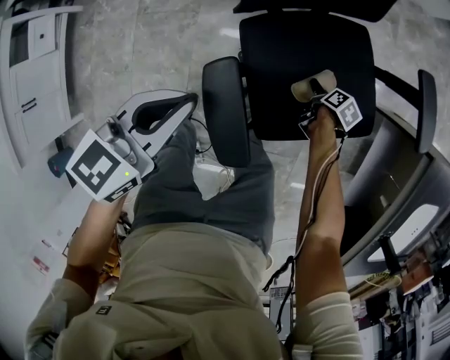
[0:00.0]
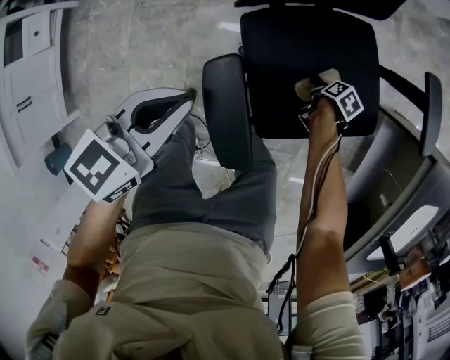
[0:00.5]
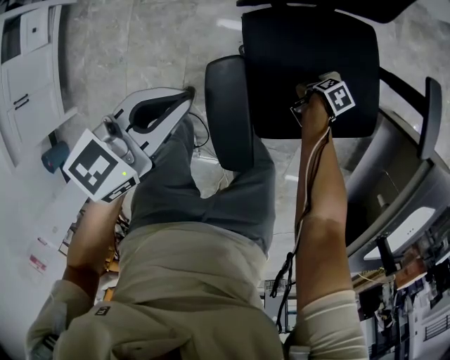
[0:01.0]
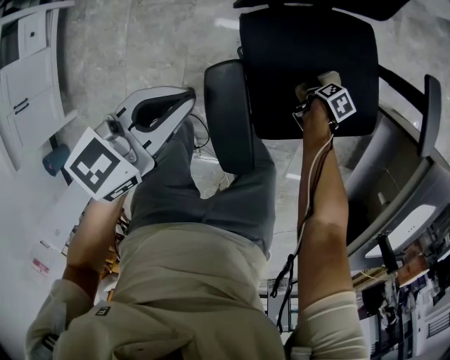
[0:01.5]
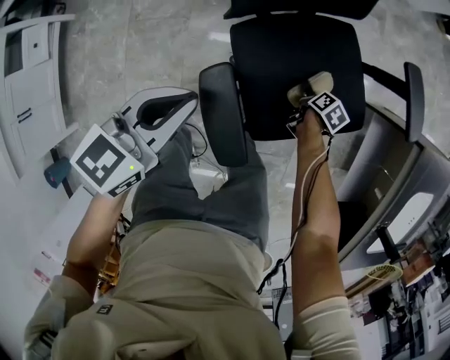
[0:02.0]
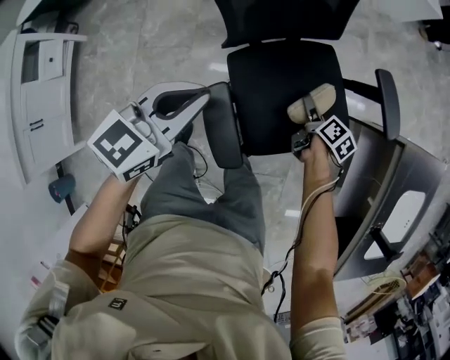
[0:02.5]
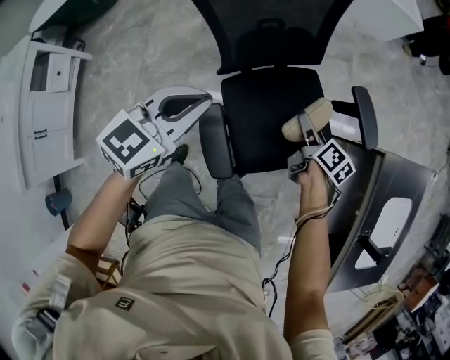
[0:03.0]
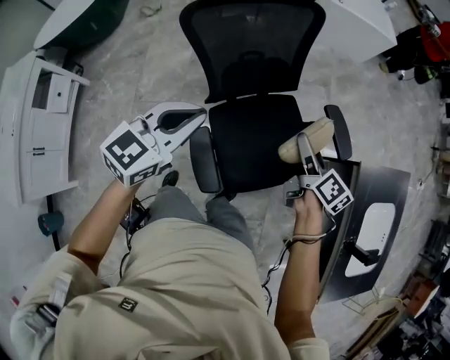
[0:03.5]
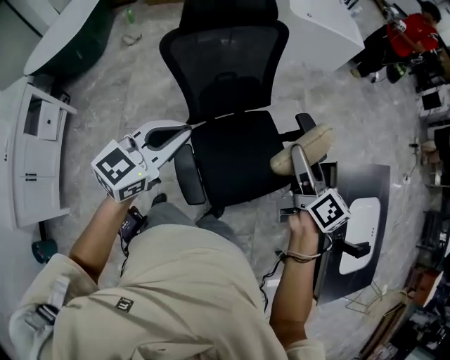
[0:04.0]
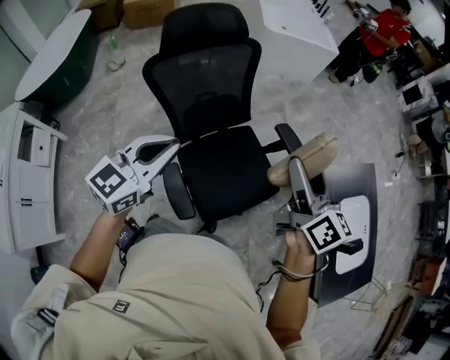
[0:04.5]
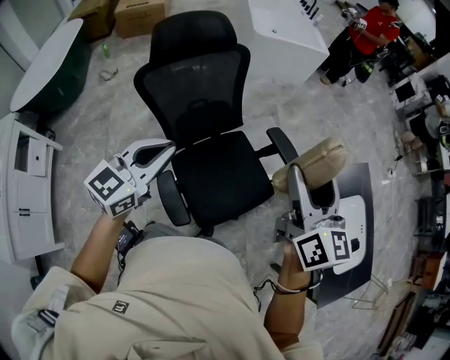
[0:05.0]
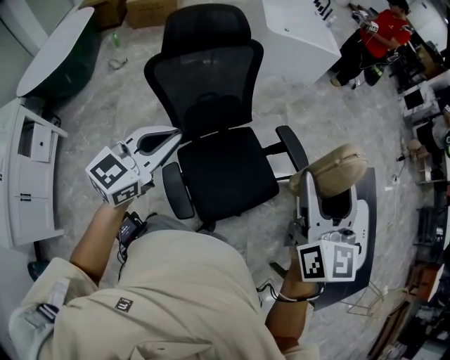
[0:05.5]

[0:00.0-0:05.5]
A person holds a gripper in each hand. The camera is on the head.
0:00.0 to 0:02.0: The grippers stay close to where they were, moving slightly.
0:02.0 to 0:03.5: The left gripper is displaced upward by roughly 20 cm, and swivels about 20 degrees, while the right gripper goes roughly 40 cm upward, and tilts its fingers roughly 40 degrees upward.
0:03.5 to 0:05.5: The right gripper goes roughly 30 cm upward, and twists approximately 50 degrees counterclockwise, seen from behind; the left gripper goes roughly 10 cm upward.

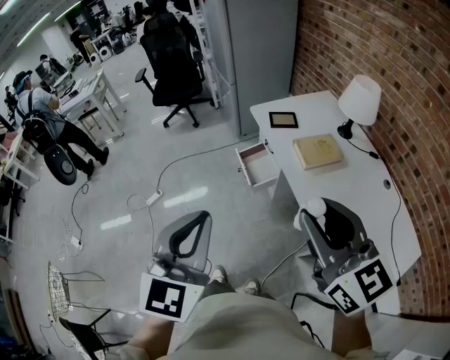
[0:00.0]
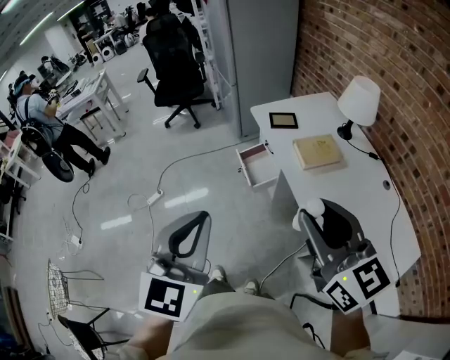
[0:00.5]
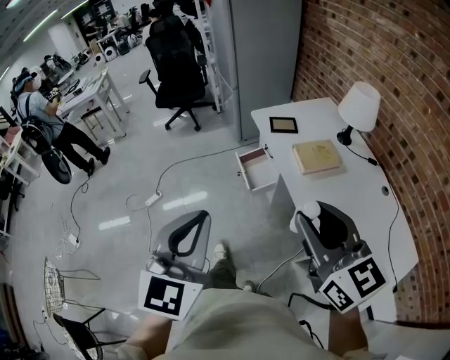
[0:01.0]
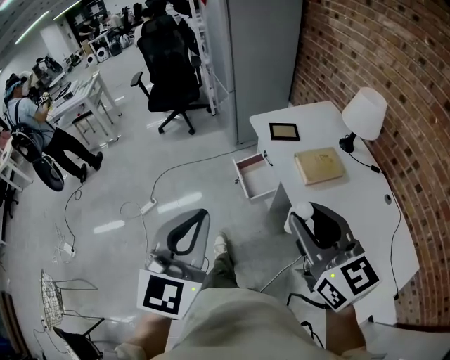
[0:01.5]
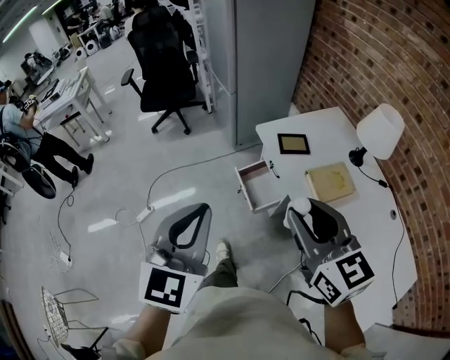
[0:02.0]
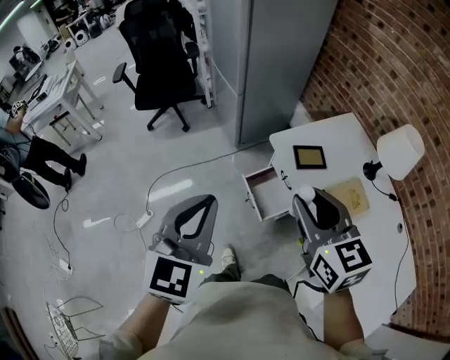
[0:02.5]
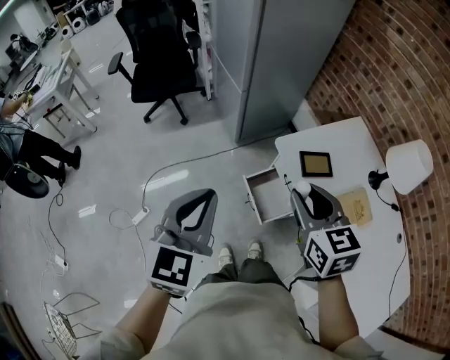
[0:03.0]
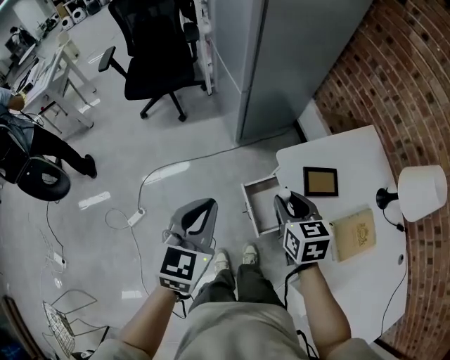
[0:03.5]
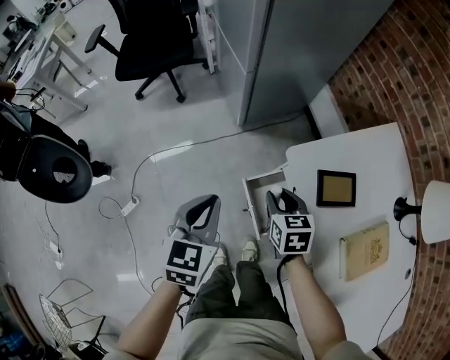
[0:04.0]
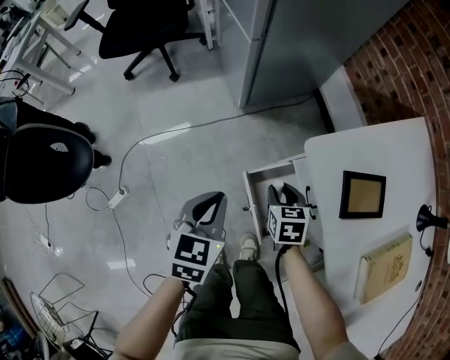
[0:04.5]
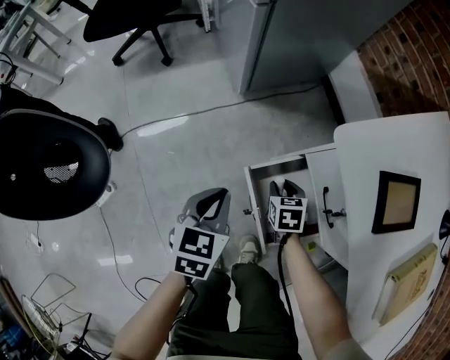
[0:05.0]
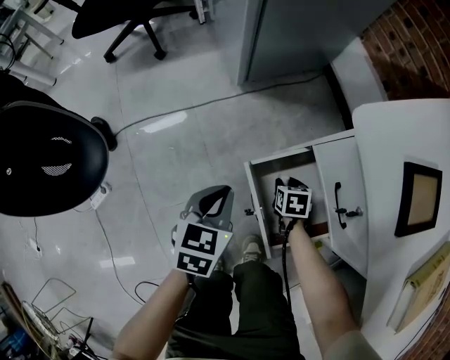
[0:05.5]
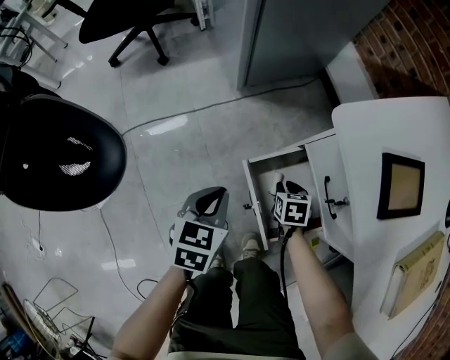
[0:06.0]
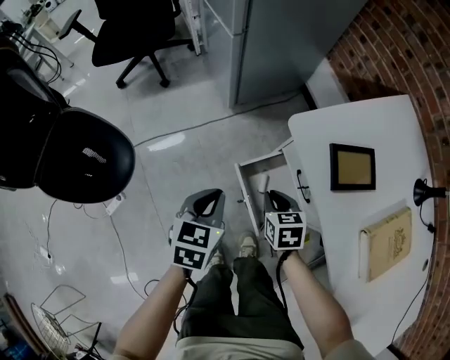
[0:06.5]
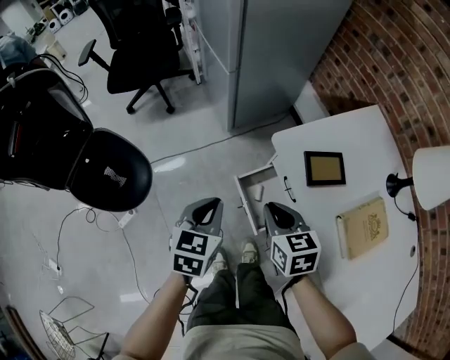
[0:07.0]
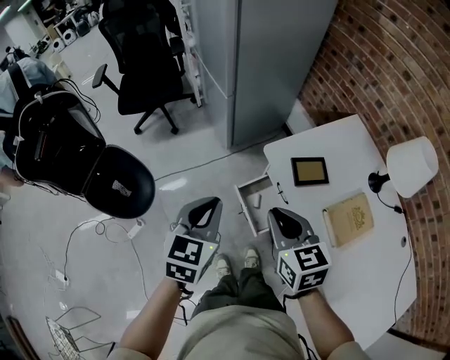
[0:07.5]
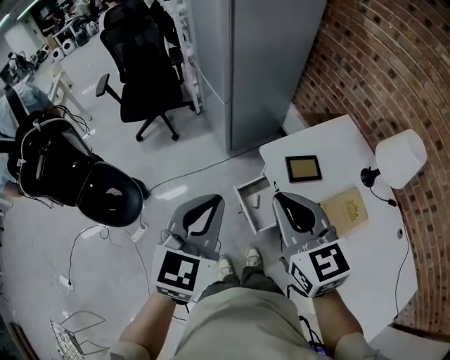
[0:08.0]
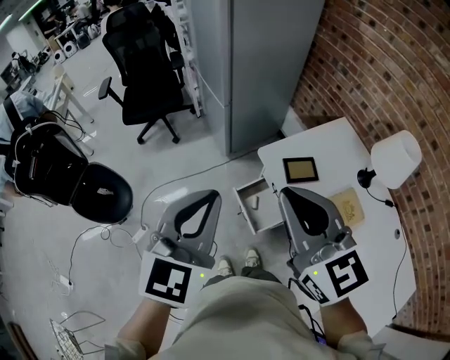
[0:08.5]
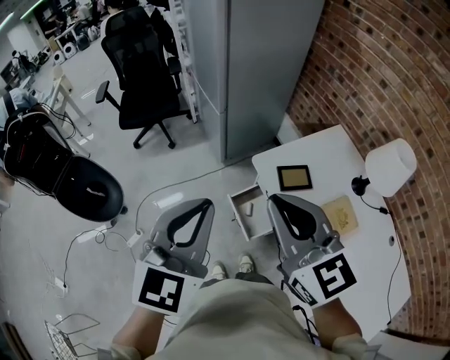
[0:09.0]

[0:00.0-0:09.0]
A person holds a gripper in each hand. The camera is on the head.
0:00.0 to 0:02.0: Both grippers travel together forward, approximately 20 cm.
0:02.0 to 0:04.5: Both grippers travel together downward and forward, roughly 70 cm. The left gripper changes its angle by about 30 degrees. The right gripper tips its fingers downward by approximately 40 degrees.
0:04.5 to 0:07.0: The left gripper travels upward and backward by some 15 cm; the right gripper is displaced upward and backward by about 25 cm, and closes.
0:07.0 to 0:09.0: The two grippers go some 35 cm upward. The left gripper rotates about 30 degrees. Meanwhile the right gripper changes its angle by approximately 40 degrees.

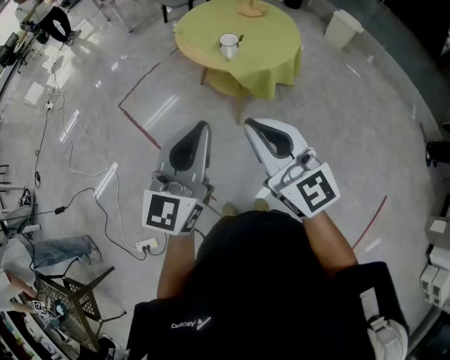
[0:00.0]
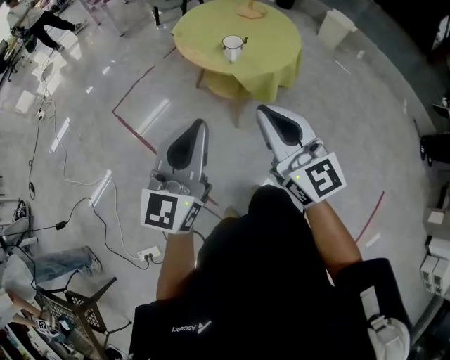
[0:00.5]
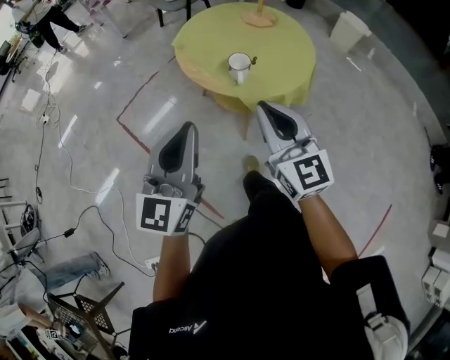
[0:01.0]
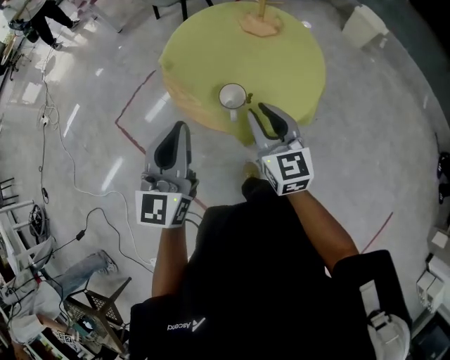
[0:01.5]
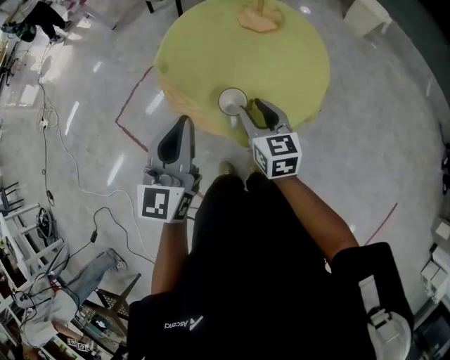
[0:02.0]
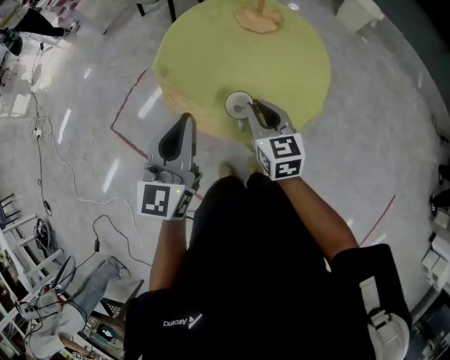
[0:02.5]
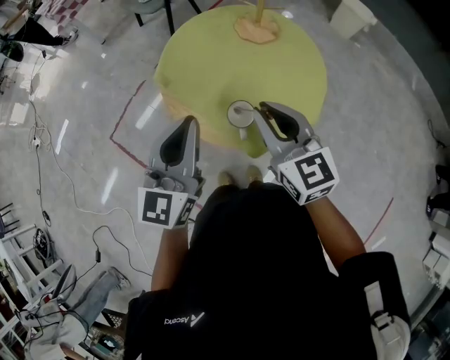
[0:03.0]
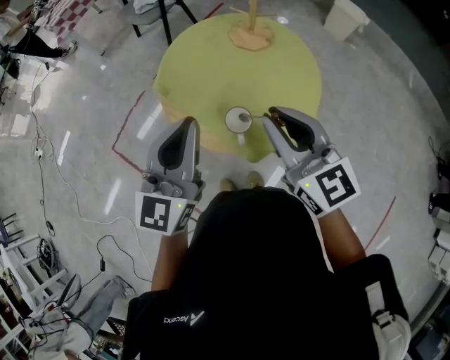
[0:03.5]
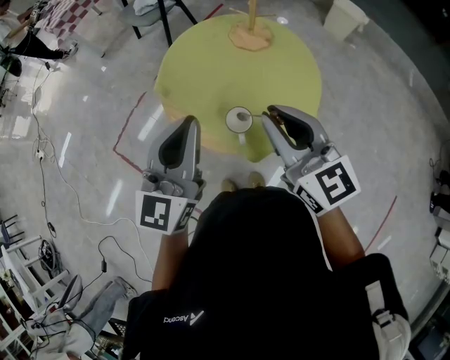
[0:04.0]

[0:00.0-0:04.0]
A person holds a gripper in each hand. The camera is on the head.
0:00.0 to 0:02.0: Both grippers are carried forward, about 50 cm. The right gripper is displaced downward by some 25 cm, turns by some 40 degrees, and opens.
0:02.0 to 0:04.0: The right gripper is displaced upward by some 20 cm, turns by roughly 20 degrees, and closes. The left gripper goes approximately 5 cm upward.

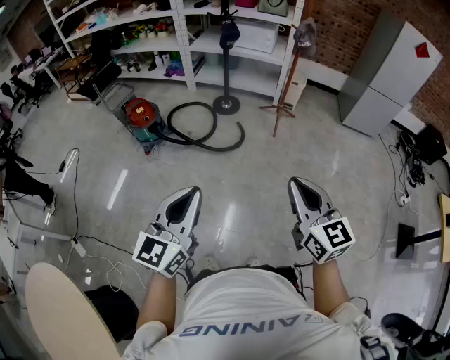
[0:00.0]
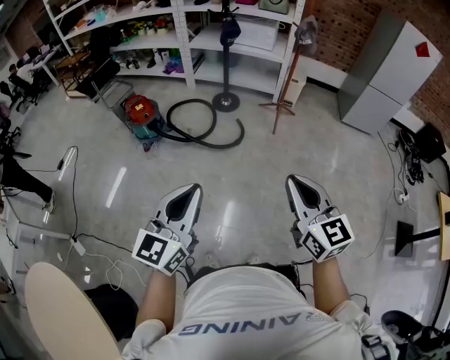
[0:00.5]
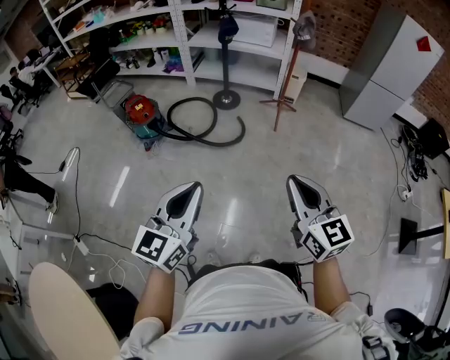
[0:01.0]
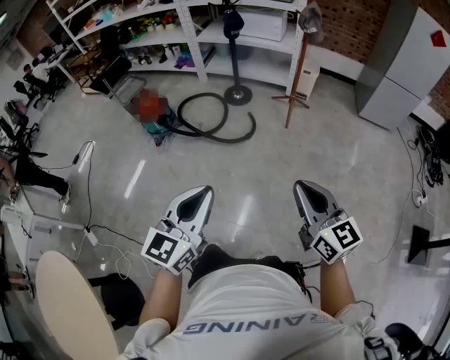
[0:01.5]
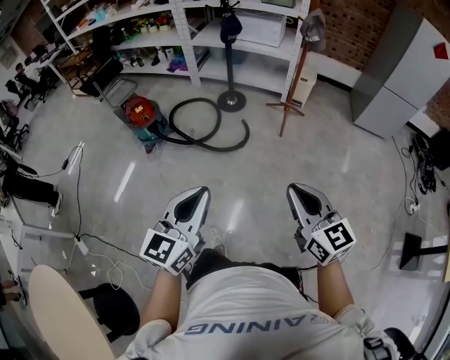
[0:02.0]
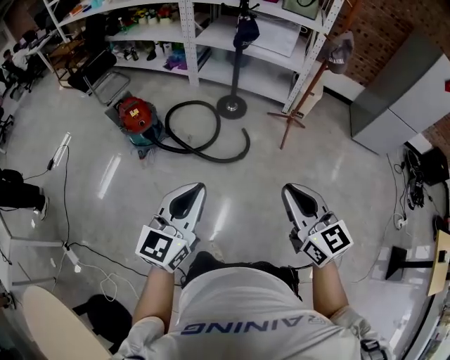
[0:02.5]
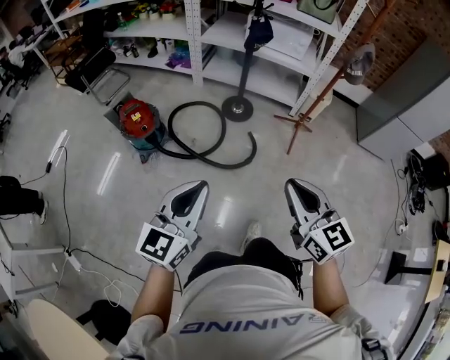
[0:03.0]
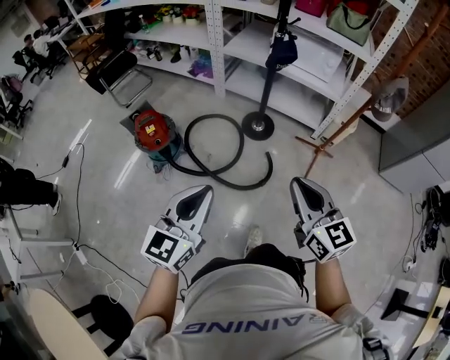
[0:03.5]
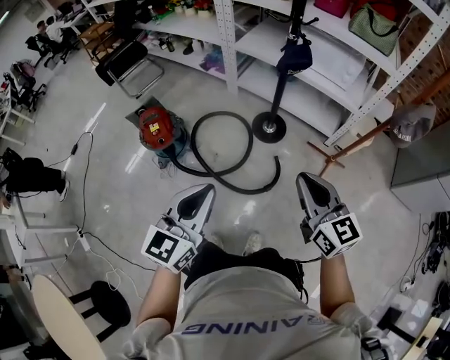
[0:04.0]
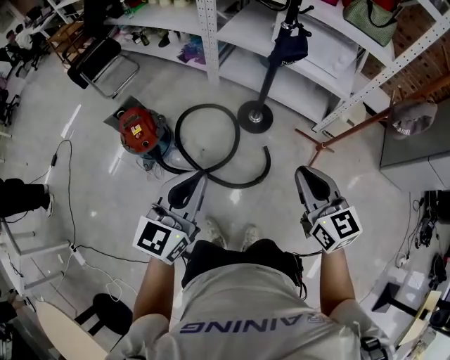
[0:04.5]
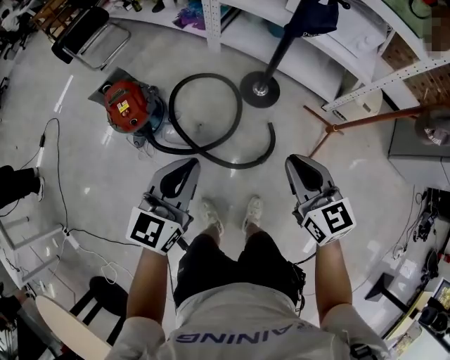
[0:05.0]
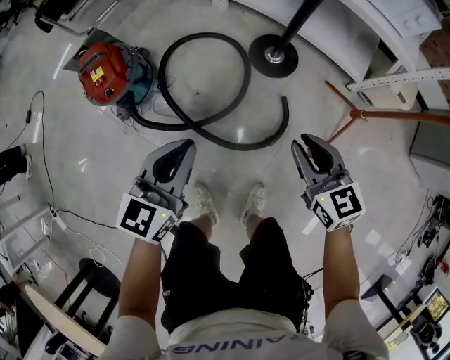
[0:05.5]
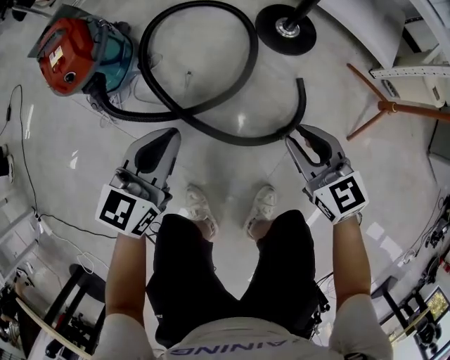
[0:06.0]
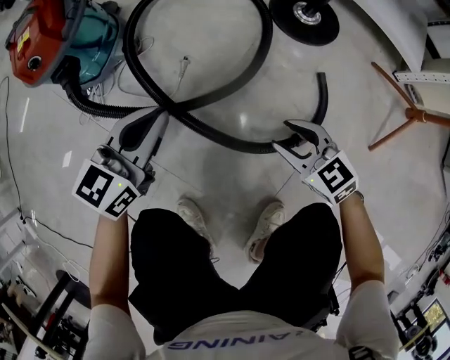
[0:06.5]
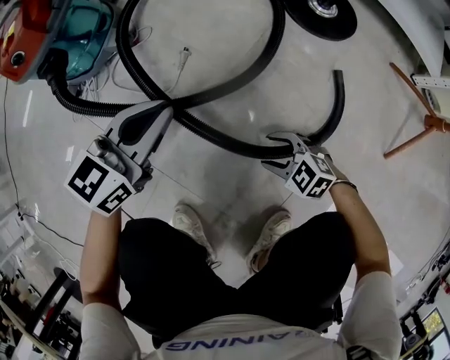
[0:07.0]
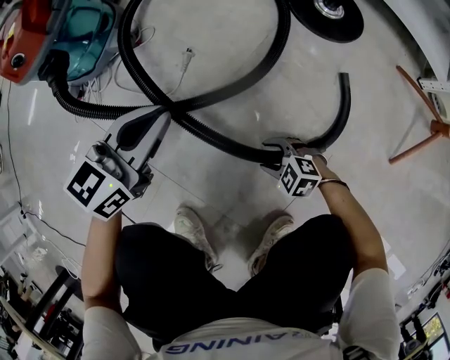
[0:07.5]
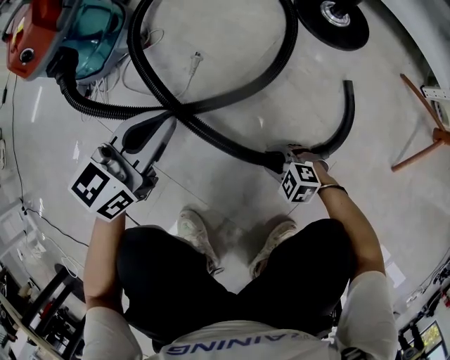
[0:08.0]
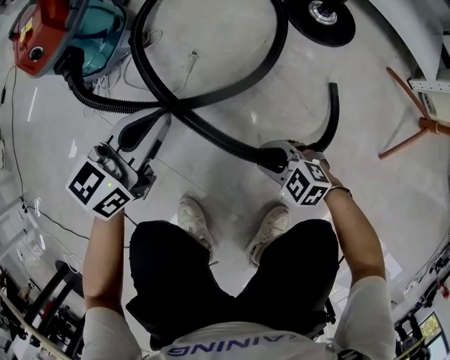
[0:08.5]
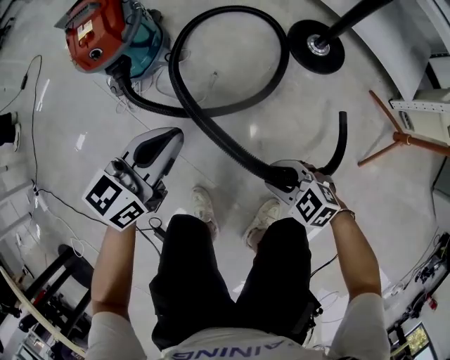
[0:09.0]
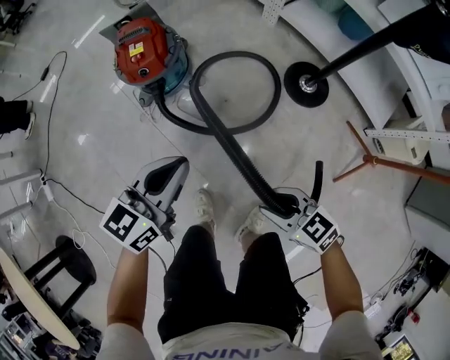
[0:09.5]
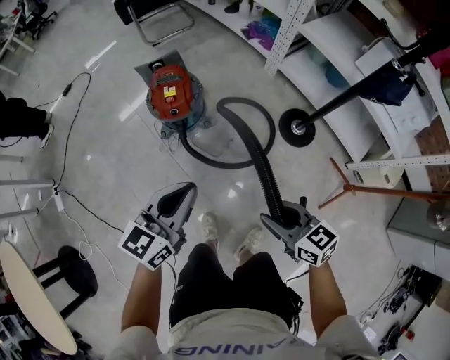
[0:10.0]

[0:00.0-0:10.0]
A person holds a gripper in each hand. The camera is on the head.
0:00.0 to 0:02.0: The right gripper is displaced forward, downward and to the right by roughly 15 cm, while the left gripper goes approximately 15 cm forward and to the right.
0:02.0 to 0:04.0: The pair of grippers is taken forward, about 60 cm.
0:04.0 to 0:06.0: The two grippers go roughly 60 cm downward. The right gripper turns by some 30 degrees.
0:06.0 to 0:08.0: The right gripper heads downward, covering approximately 50 cm, changes its angle by some 60 degrees, and opens, then closes once more. The left gripper is displaced downward by some 25 cm.
0:08.0 to 0:10.0: Both grippers travel together upward, about 70 cm. The right gripper angles its fingers upward, by approximately 30 degrees. Meanwhile the left gripper turns by roughly 20 degrees.
